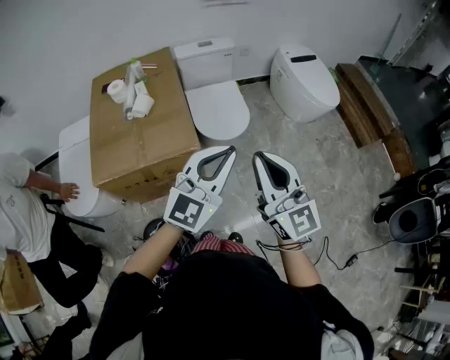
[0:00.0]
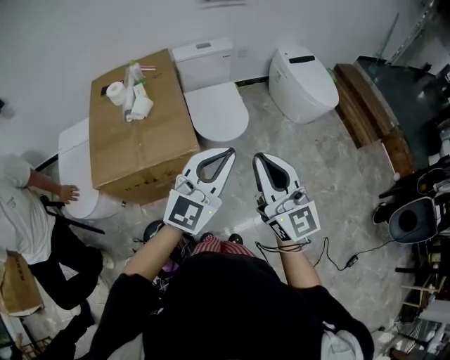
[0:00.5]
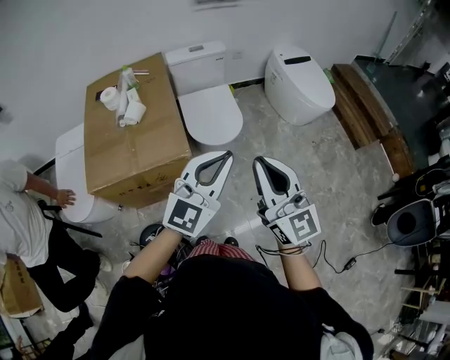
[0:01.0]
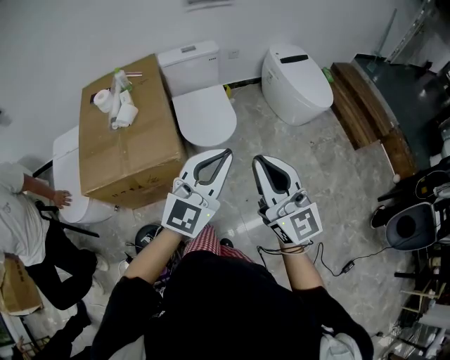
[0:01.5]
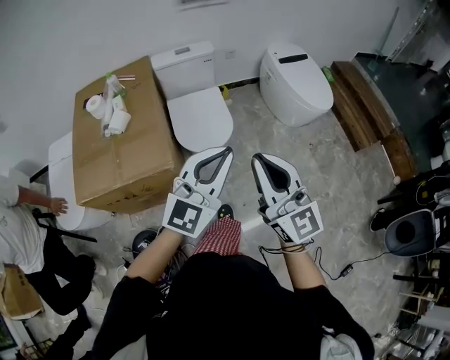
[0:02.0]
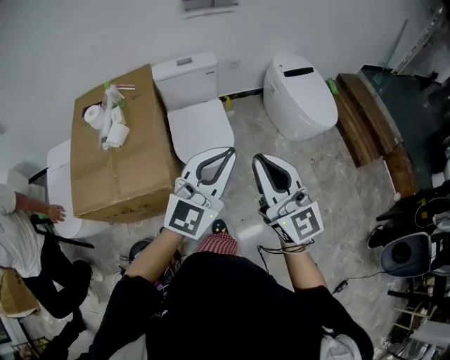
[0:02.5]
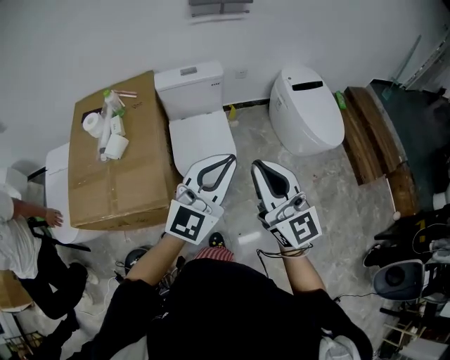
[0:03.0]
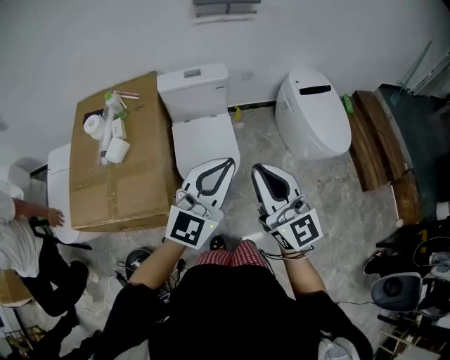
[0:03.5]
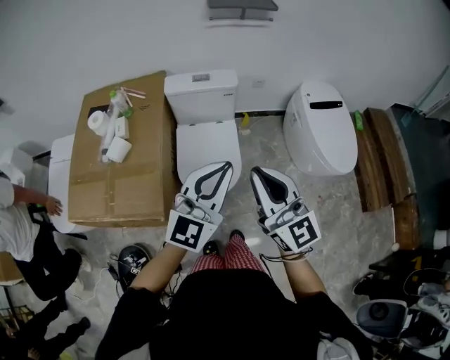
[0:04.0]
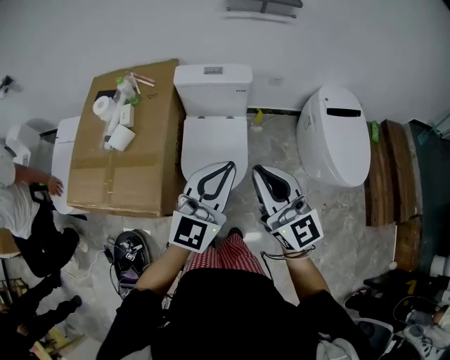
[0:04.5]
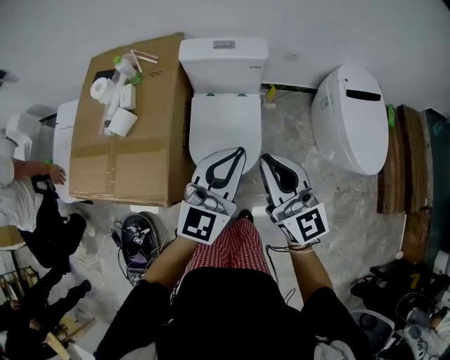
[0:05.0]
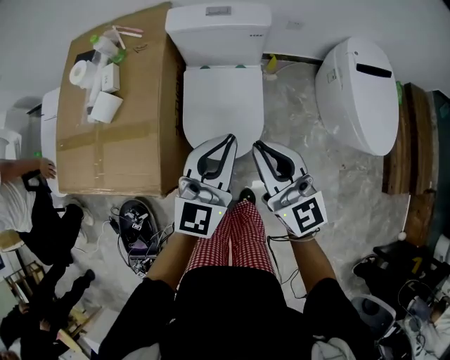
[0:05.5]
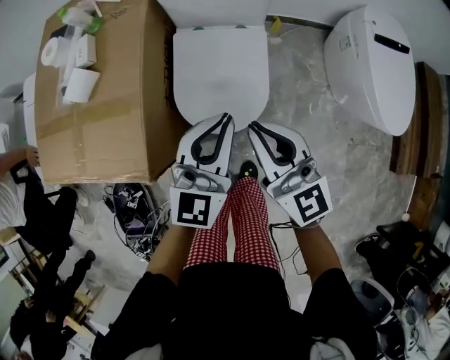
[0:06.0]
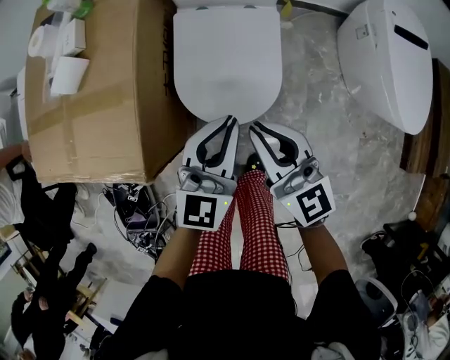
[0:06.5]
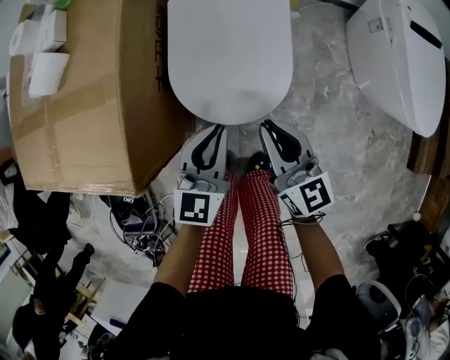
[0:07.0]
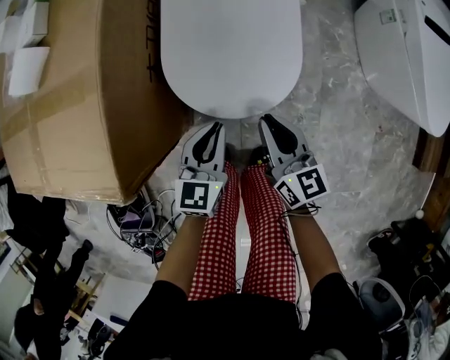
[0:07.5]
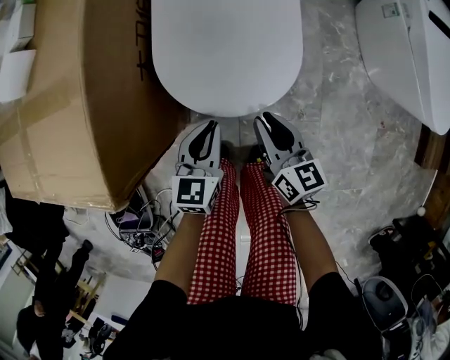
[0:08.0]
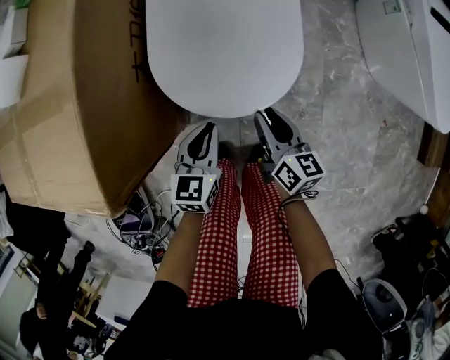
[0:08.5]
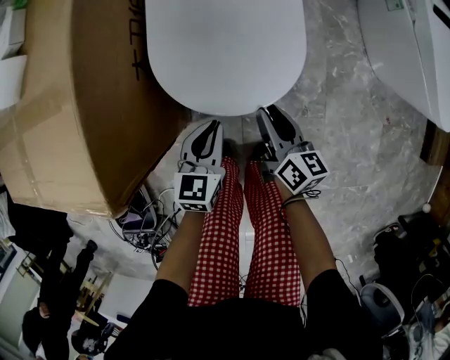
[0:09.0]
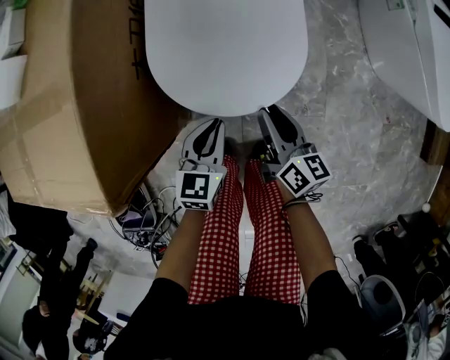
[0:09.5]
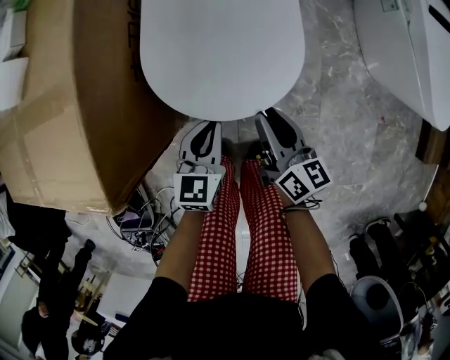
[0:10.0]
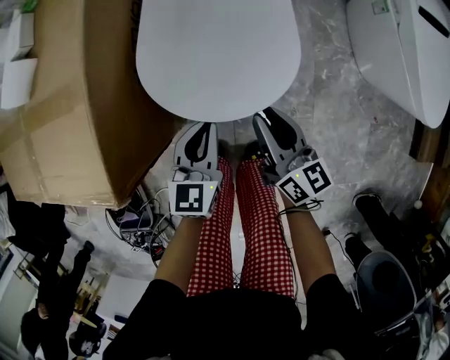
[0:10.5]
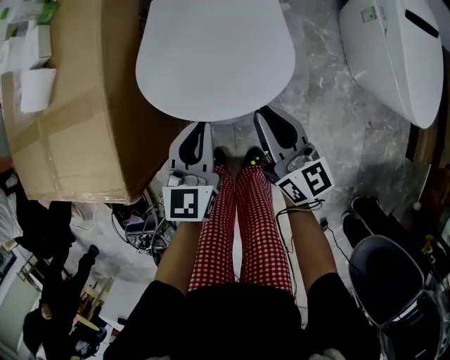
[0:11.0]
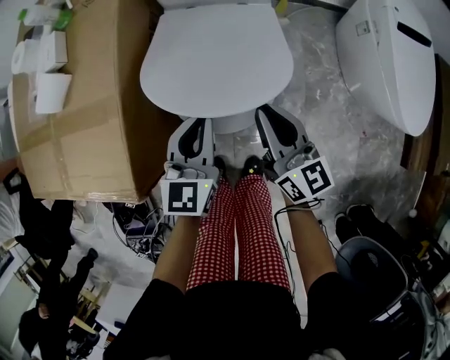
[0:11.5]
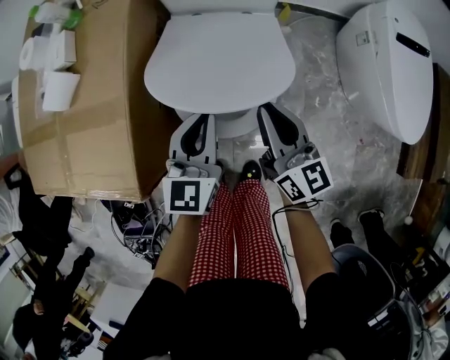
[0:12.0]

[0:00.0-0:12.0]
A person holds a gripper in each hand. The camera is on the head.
0.0 to 2.0 s: The two grippers go roughly 15 cm to the right and forward.
2.0 to 4.0 s: The grippers both shift forward by roughly 25 cm.
4.0 to 6.0 s: The grippers both shift downward and forward by about 25 cm.
6.0 to 8.0 s: Both grippers move downward, roughly 35 cm. The right gripper swivels approximately 40 degrees. Meanwhile the left gripper changes its angle by roughly 40 degrees.
8.0 to 10.0 s: The grippers move only a little.
10.0 to 12.0 s: Both grippers move upward and forward, roughly 25 cm. The right gripper changes its angle by some 20 degrees.

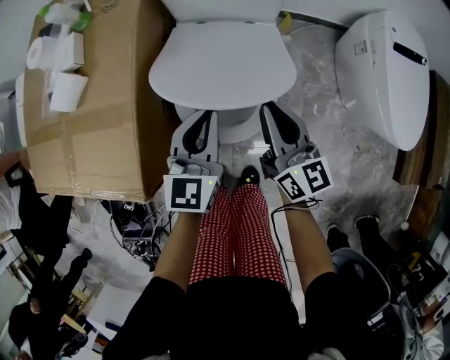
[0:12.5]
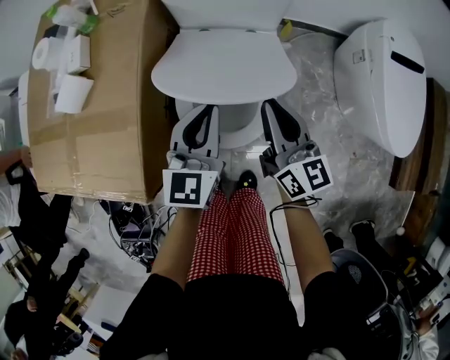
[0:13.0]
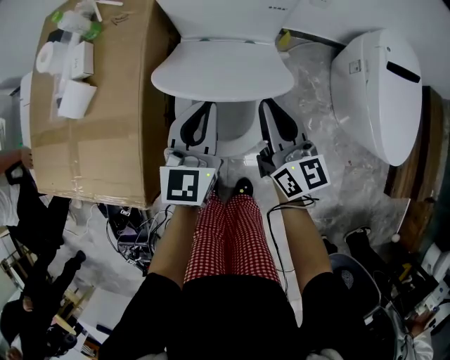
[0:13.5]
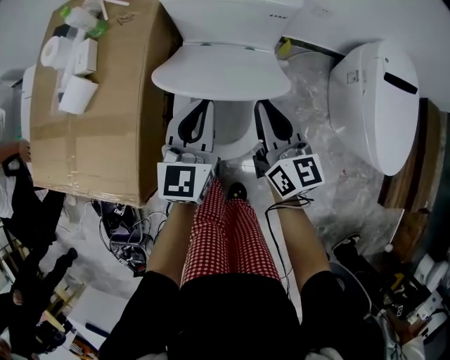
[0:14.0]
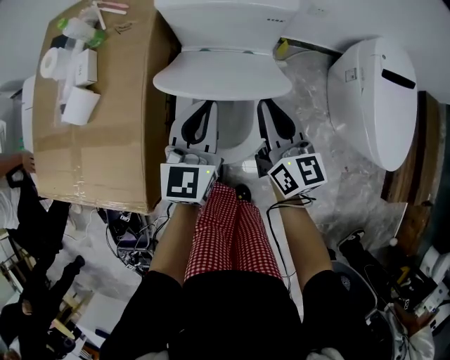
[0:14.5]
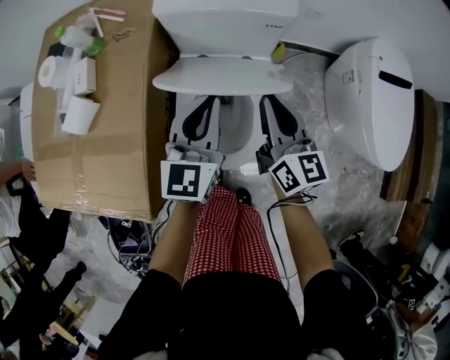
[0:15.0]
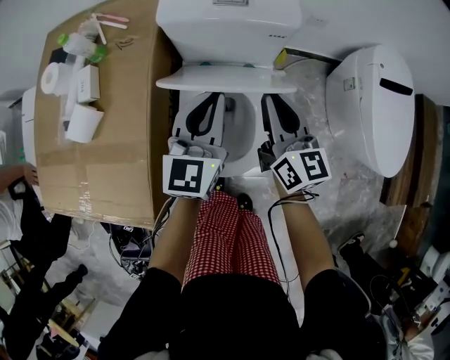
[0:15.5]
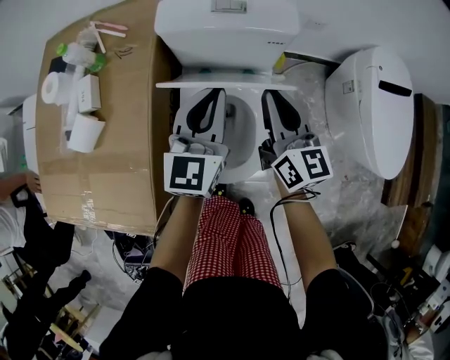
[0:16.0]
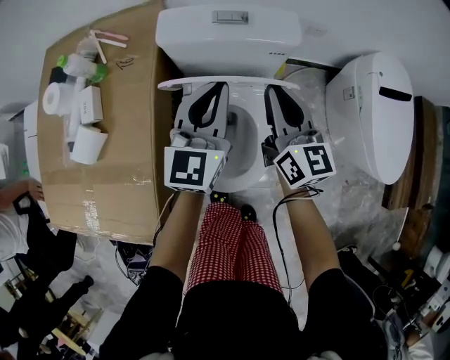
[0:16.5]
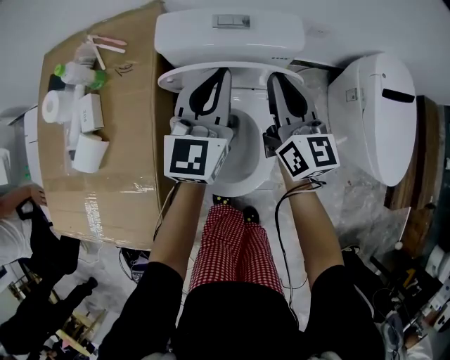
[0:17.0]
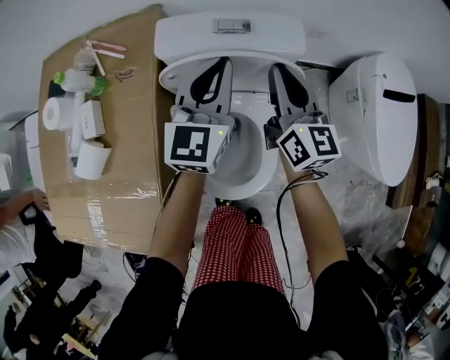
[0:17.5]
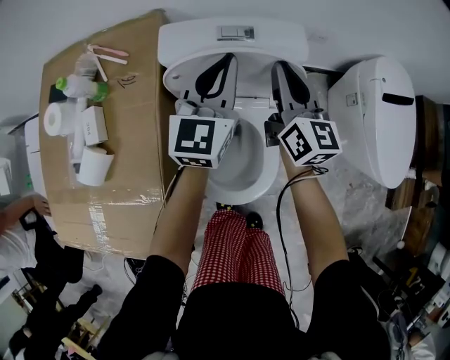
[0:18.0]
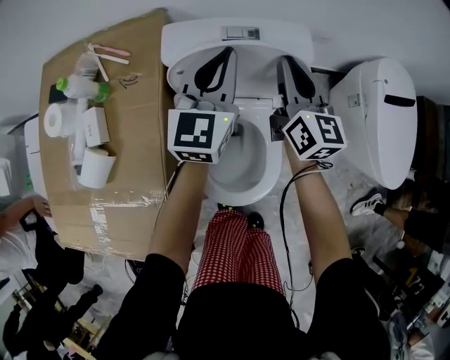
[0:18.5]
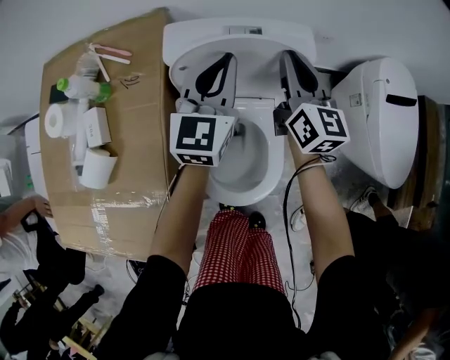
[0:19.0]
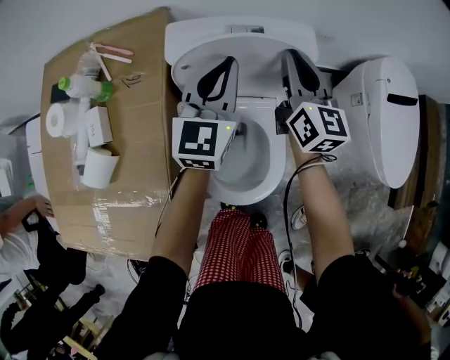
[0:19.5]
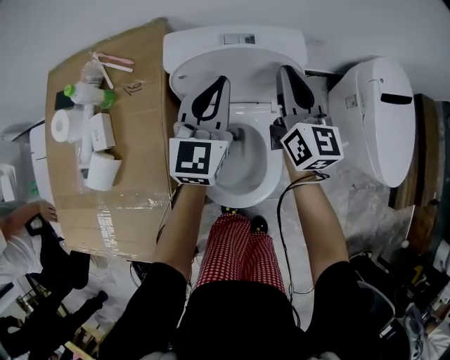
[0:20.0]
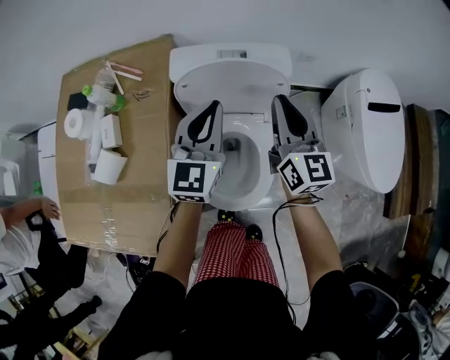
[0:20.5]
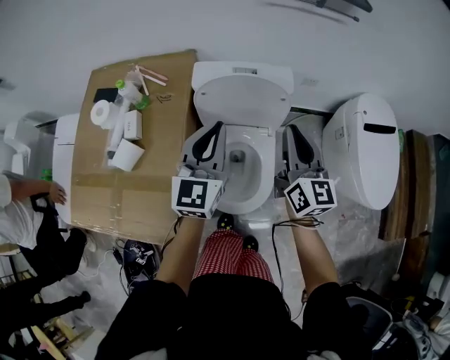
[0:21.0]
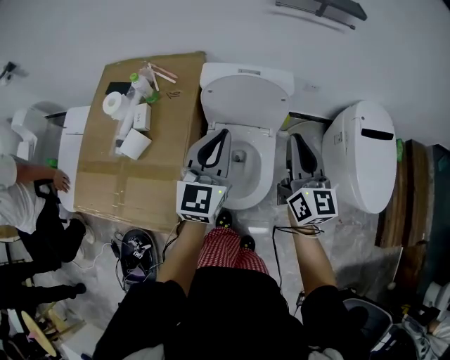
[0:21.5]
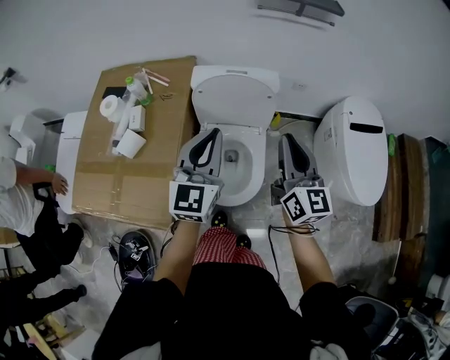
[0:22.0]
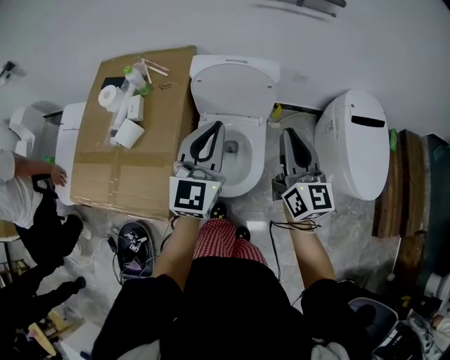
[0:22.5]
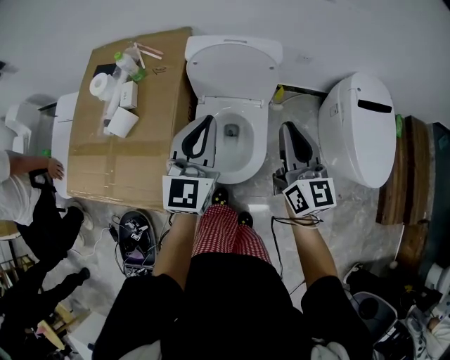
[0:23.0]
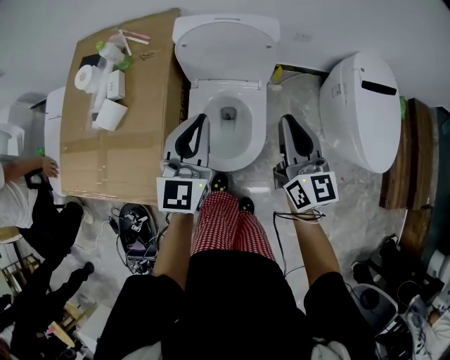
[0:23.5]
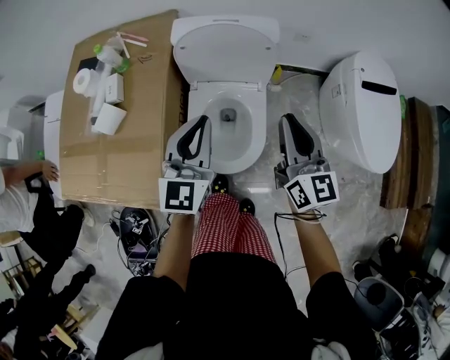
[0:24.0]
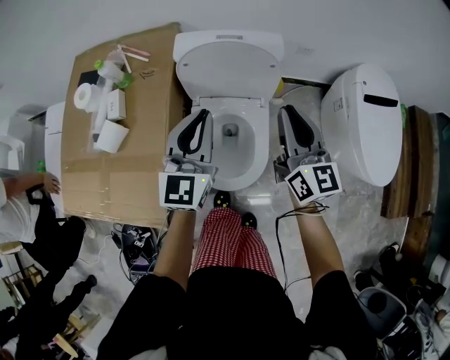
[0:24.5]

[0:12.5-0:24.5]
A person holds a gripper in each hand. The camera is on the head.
12.5 to 14.5 s: The left gripper goes about 10 cm forward and upward, while the right gripper heads forward, covering about 5 cm.
14.5 to 16.5 s: The right gripper moves forward, approximately 10 cm. The left gripper shifts approximately 15 cm forward and upward.
16.5 to 18.5 s: The grippers both shift forward by some 10 cm.
18.5 to 20.5 s: The left gripper travels backward by approximately 10 cm. Meanwhile the right gripper goes some 10 cm backward and upward.
20.5 to 22.5 s: The grippers both shift backward and upward by about 20 cm.
22.5 to 24.5 s: The grippers both shift downward and forward by about 10 cm.

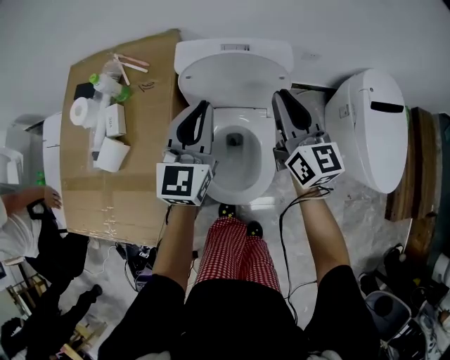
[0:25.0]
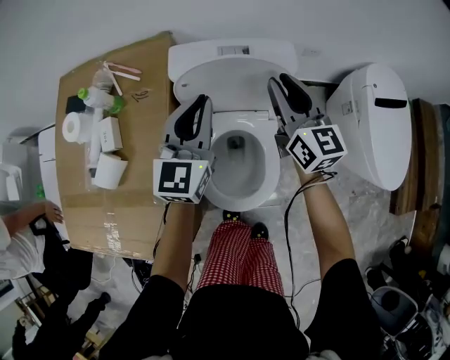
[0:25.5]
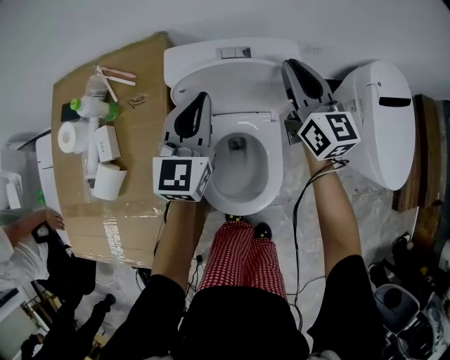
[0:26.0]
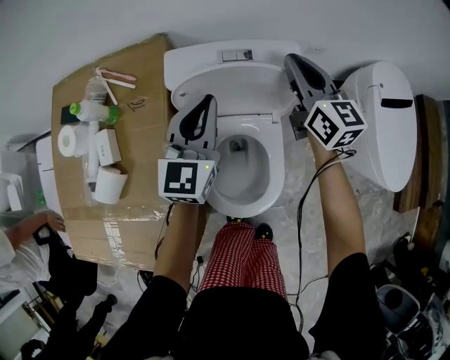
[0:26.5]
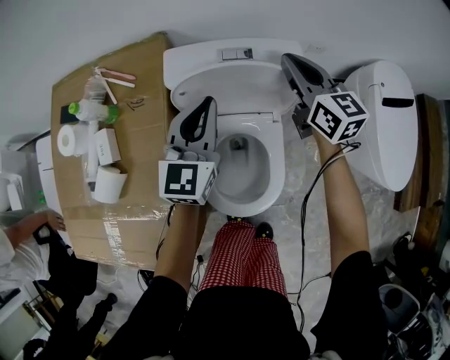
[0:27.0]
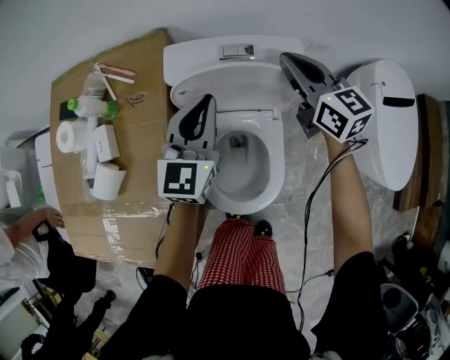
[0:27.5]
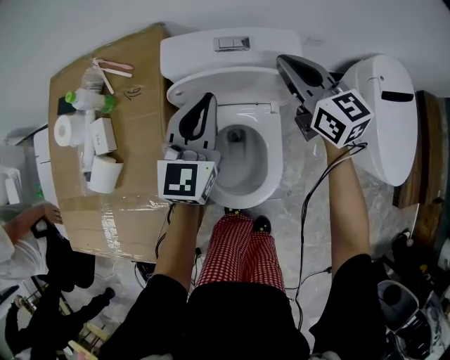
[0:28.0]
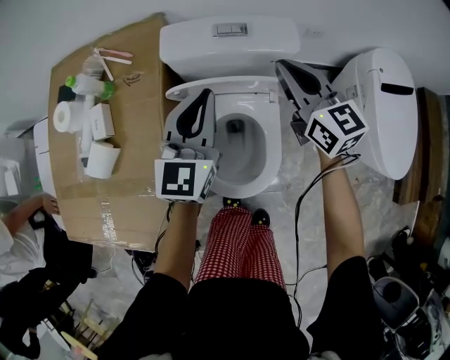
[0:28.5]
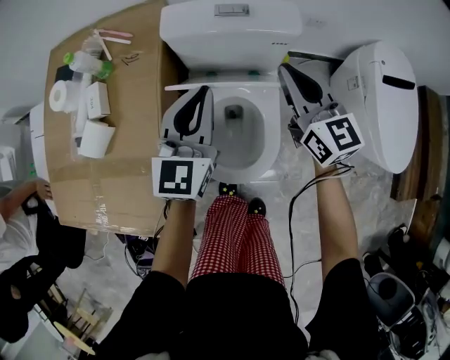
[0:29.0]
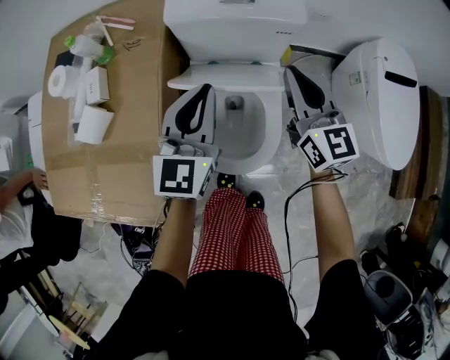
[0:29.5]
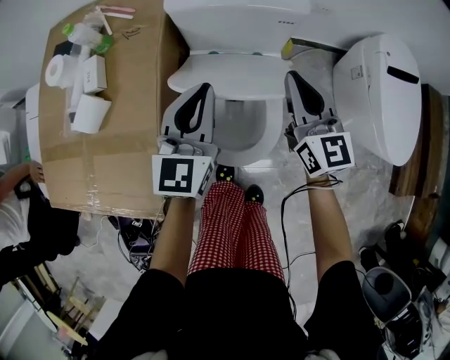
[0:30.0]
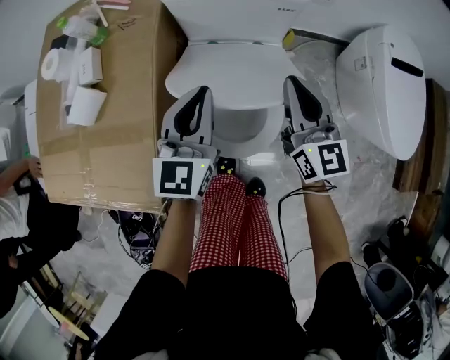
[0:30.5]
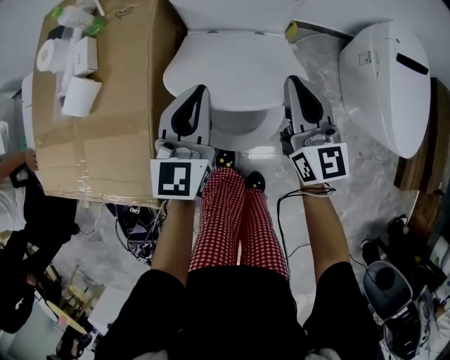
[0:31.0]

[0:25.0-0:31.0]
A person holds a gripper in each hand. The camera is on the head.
25.0 to 27.0 s: The left gripper moves forward and downward, about 10 cm. The right gripper goes roughly 15 cm forward.
27.0 to 29.0 s: Both grippers travel together backward, about 10 cm.
29.0 to 31.0 s: The two grippers go some 10 cm backward and downward.
